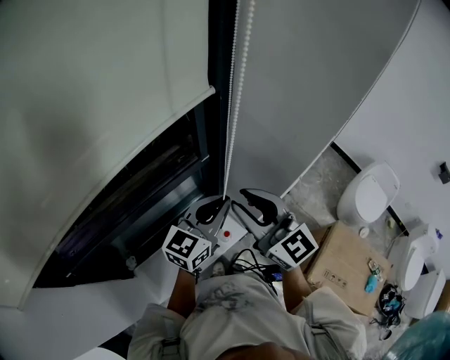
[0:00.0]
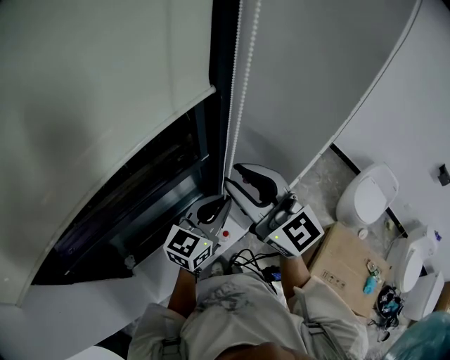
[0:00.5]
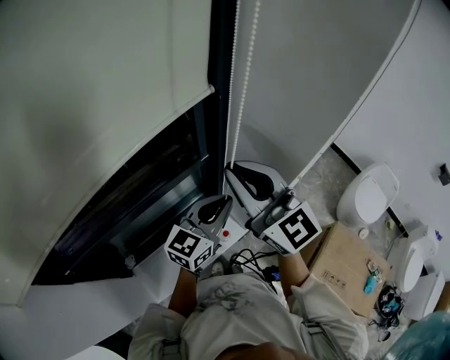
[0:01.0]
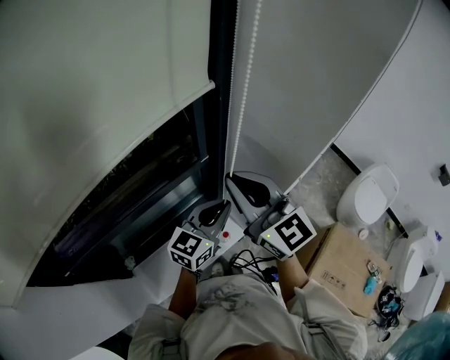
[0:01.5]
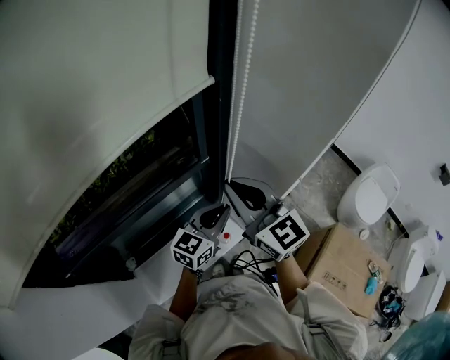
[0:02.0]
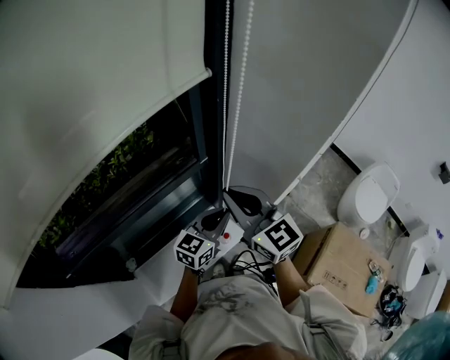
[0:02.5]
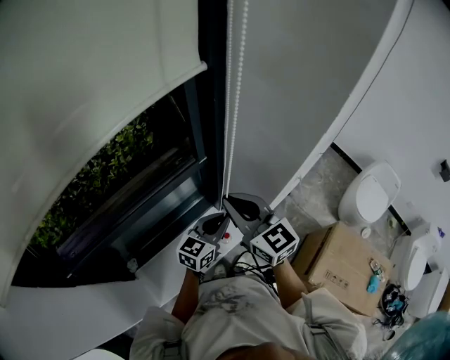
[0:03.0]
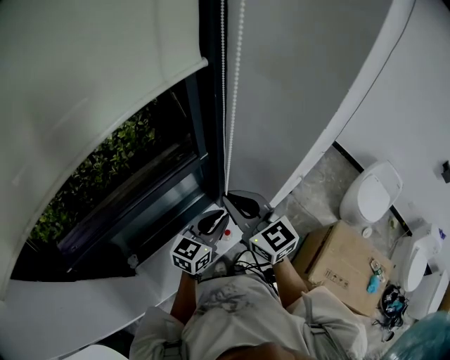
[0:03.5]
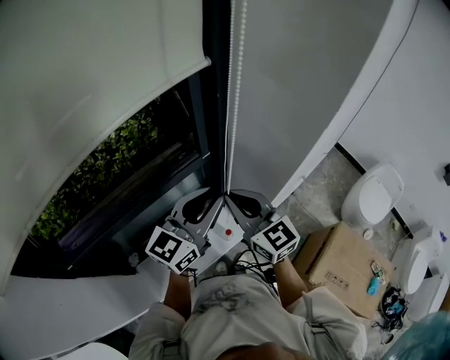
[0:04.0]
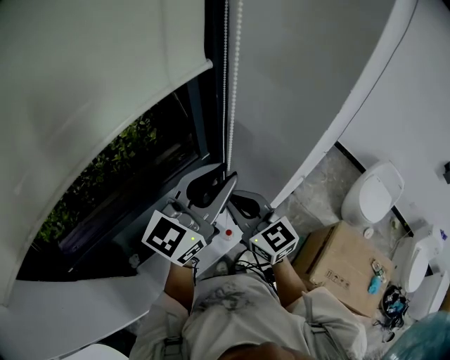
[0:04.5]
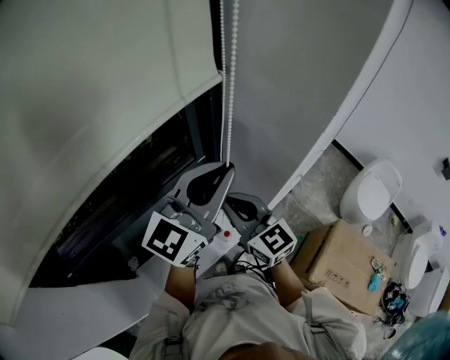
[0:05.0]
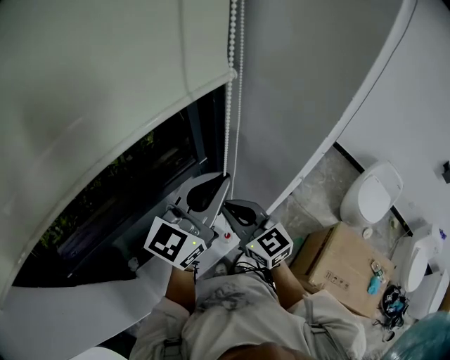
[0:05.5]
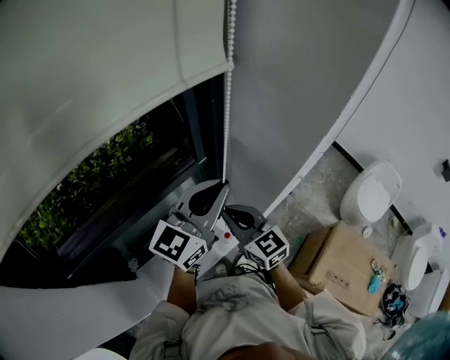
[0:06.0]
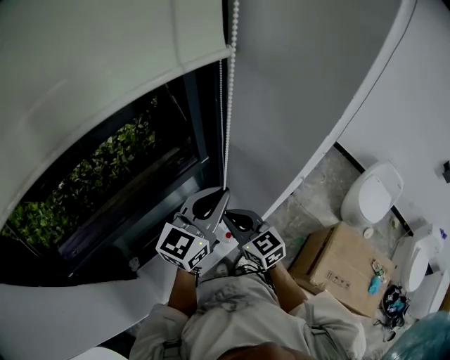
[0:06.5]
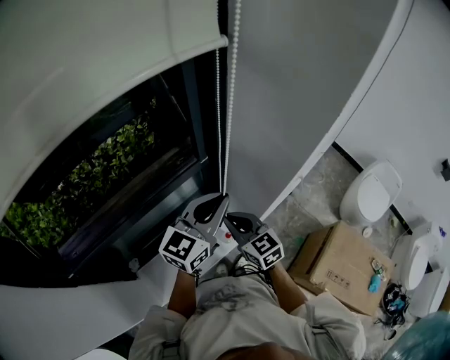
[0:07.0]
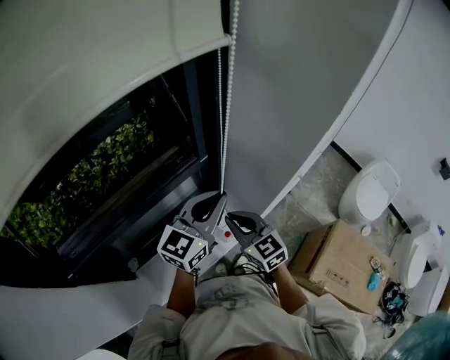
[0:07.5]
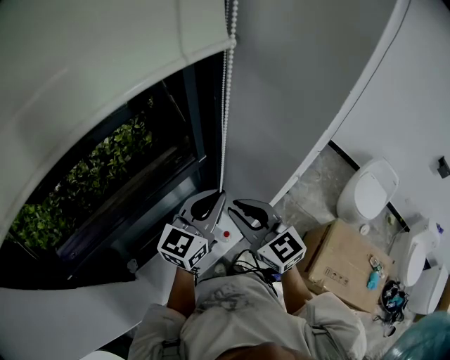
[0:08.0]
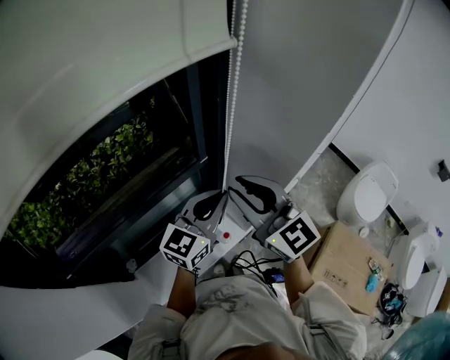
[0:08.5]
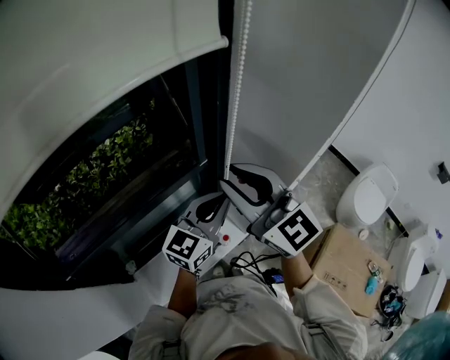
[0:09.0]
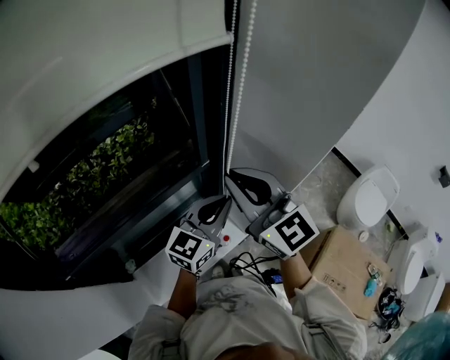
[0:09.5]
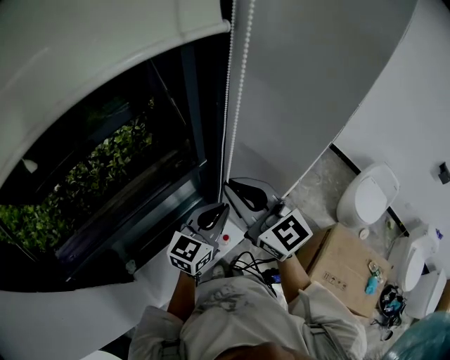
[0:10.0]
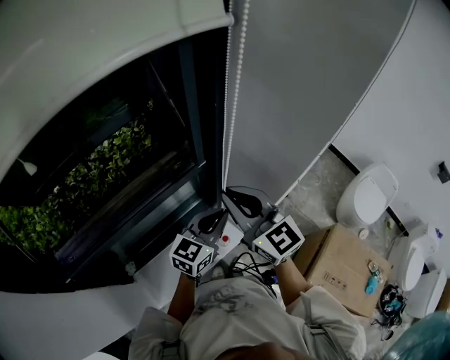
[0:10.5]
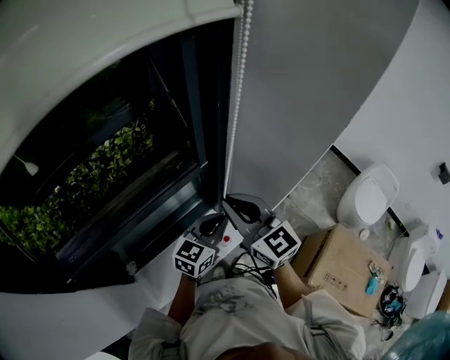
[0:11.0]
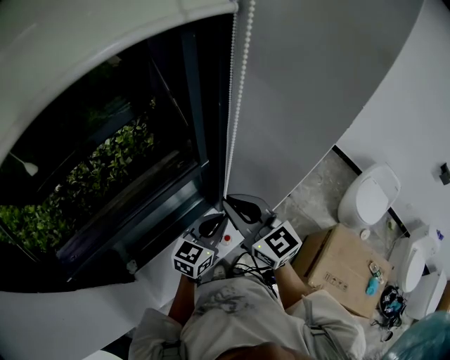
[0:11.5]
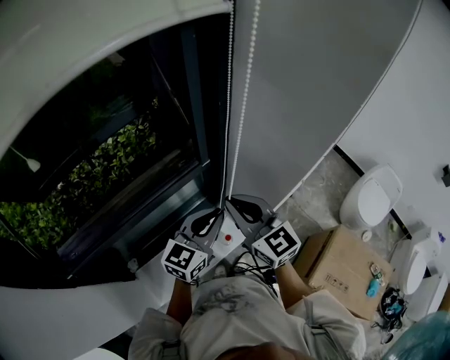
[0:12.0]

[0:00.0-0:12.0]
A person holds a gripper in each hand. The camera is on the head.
0:00.0 to 0:02.0: The right gripper moves about 10 cm upward and comes back, and closes up. Meanwhile the left gripper shifts roughly 5 cm downward.
0:02.0 to 0:04.0: The left gripper is displaced upward by approximately 10 cm, while the right gripper moves downward, about 5 cm.
0:04.0 to 0:06.0: The right gripper heads downward, covering roughly 5 cm.
0:06.0 to 0:08.0: The left gripper moves downward, approximately 5 cm, while the right gripper goes about 5 cm upward.
0:08.0 to 0:10.0: The right gripper goes some 5 cm upward; the left gripper goes approximately 5 cm downward.
0:10.0 to 0:12.0: The right gripper is displaced downward by approximately 5 cm.

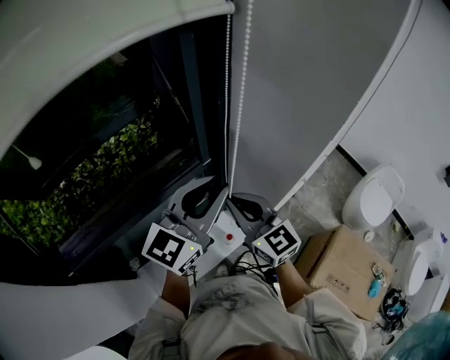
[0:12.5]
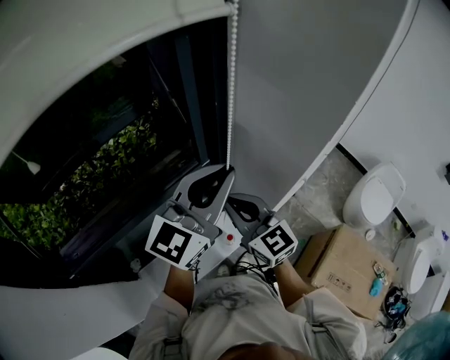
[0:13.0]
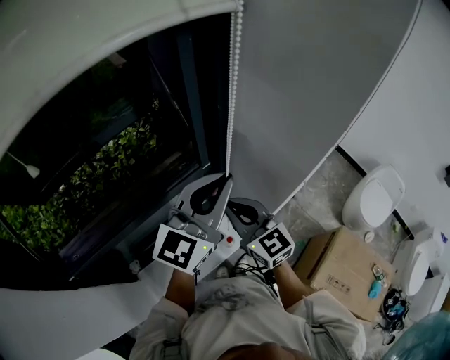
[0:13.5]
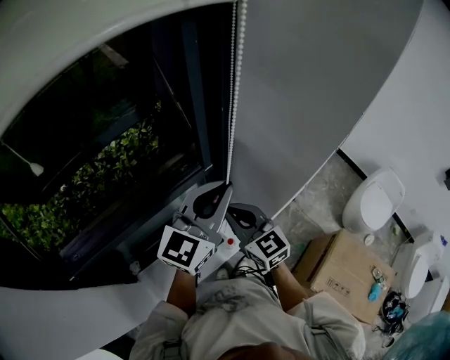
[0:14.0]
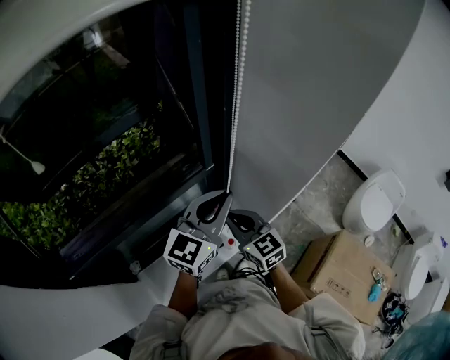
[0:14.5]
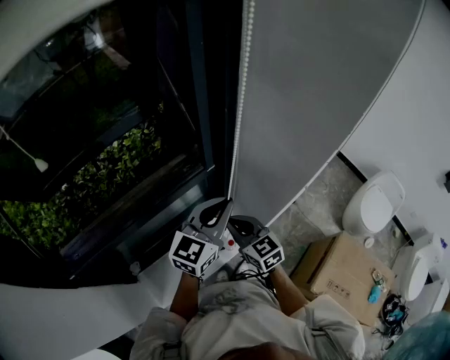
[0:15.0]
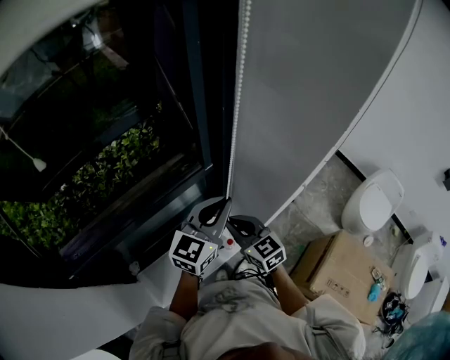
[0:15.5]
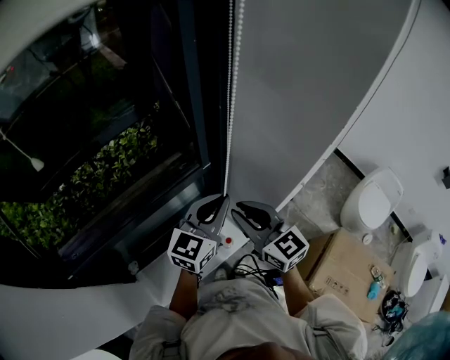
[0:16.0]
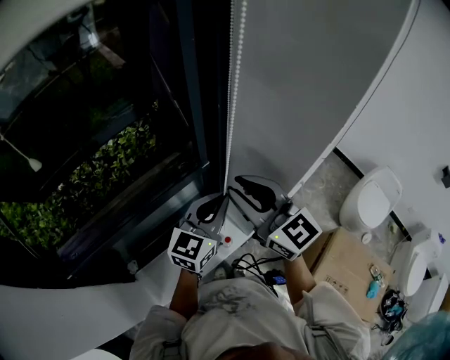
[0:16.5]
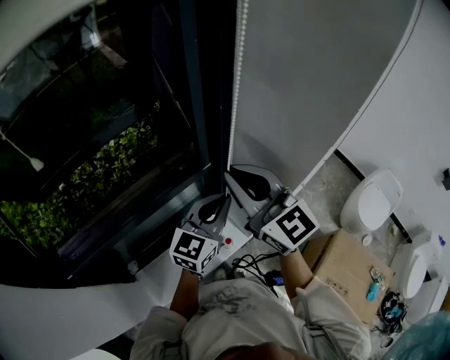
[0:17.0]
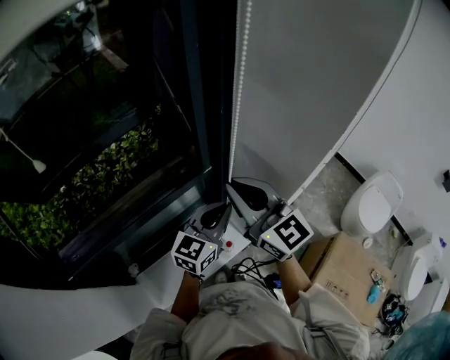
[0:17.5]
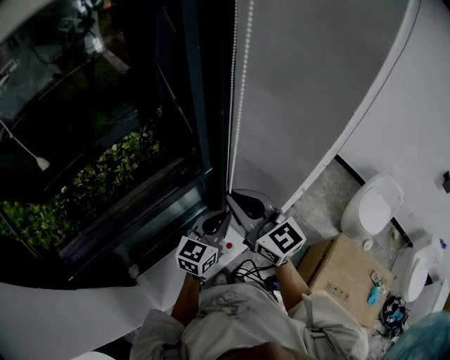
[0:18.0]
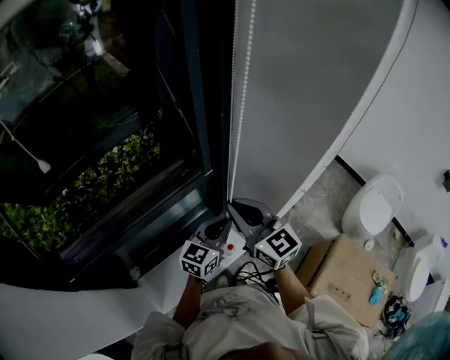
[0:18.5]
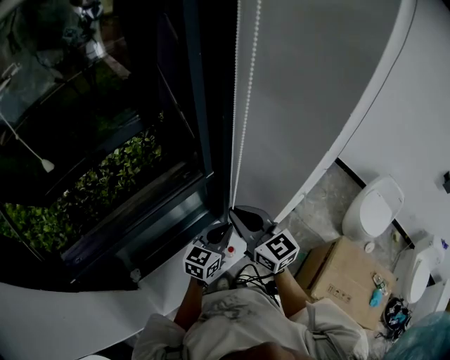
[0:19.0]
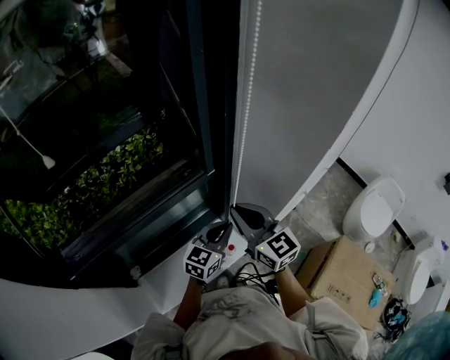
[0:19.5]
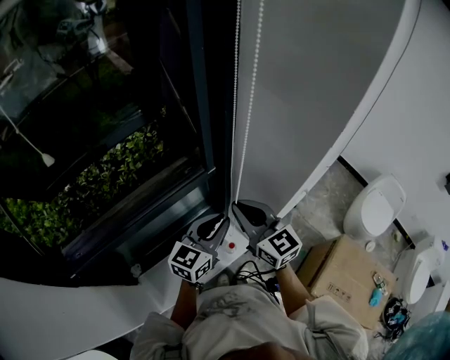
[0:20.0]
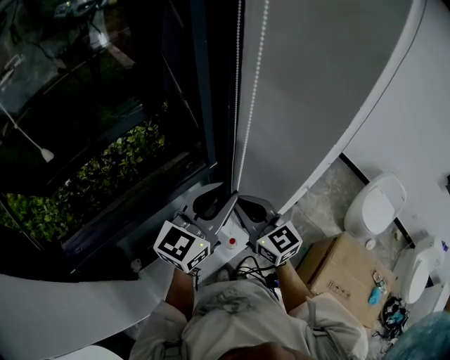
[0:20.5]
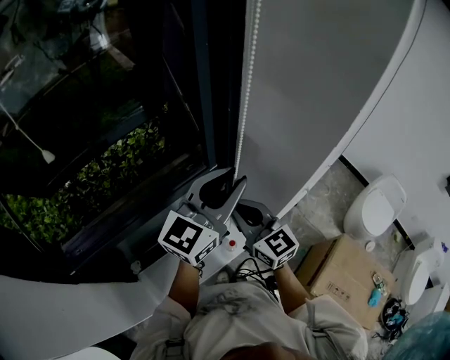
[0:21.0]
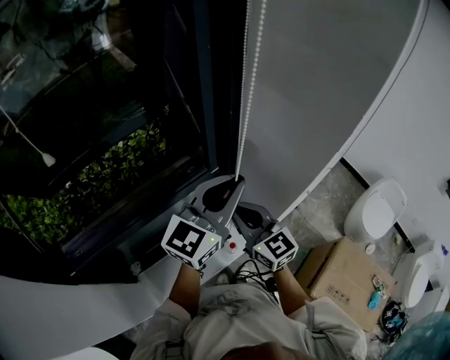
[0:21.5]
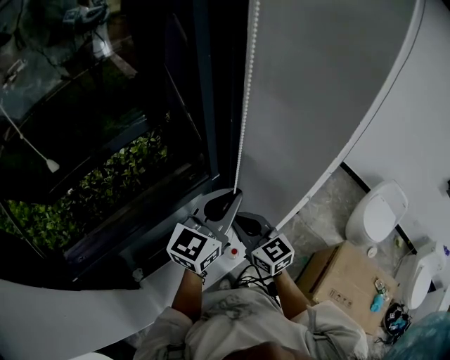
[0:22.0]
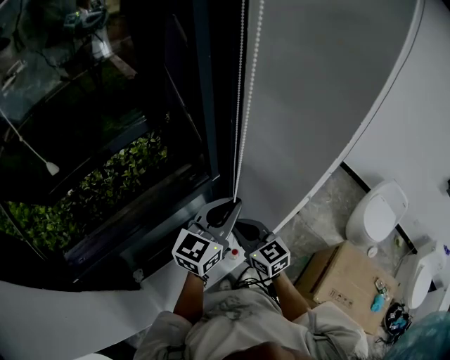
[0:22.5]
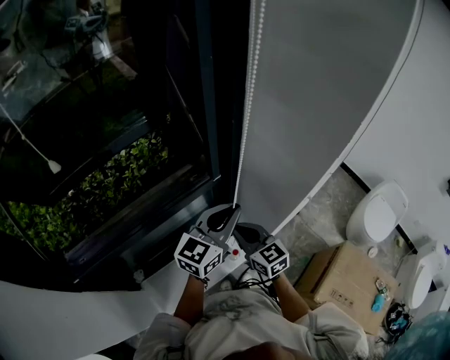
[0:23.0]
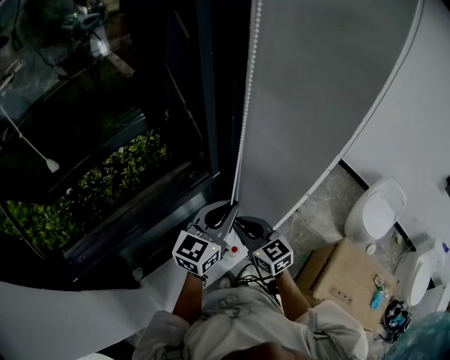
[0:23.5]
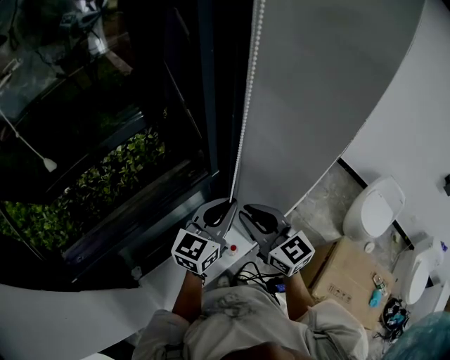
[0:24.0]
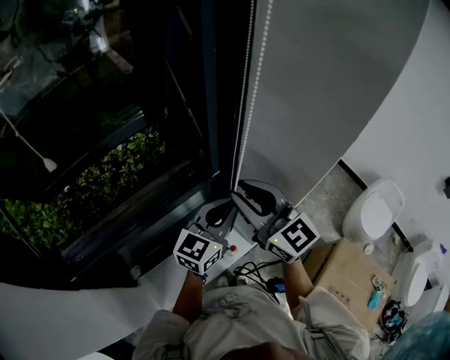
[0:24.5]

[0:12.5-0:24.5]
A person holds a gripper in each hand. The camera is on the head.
0:12.5 to 0:14.5: The right gripper shifts some 10 cm downward, while the left gripper is displaced downward by roughly 5 cm.
0:14.5 to 0:16.5: The right gripper heads upward, covering roughly 15 cm, and opens up.
0:16.5 to 0:18.5: The left gripper goes some 10 cm downward. The right gripper is displaced downward by roughly 5 cm, and closes up.
0:18.5 to 0:20.5: The left gripper is displaced upward by approximately 20 cm, and opens.
0:20.5 to 0:22.5: The left gripper shifts by about 5 cm, while the right gripper travels downward by about 10 cm.
0:22.5 to 0:24.5: The right gripper heads upward, covering about 20 cm, and opens its fingers.

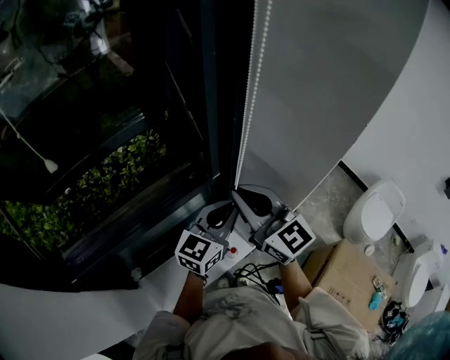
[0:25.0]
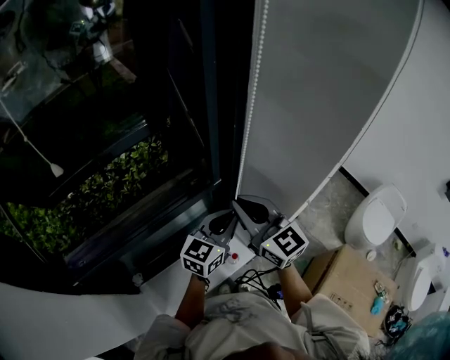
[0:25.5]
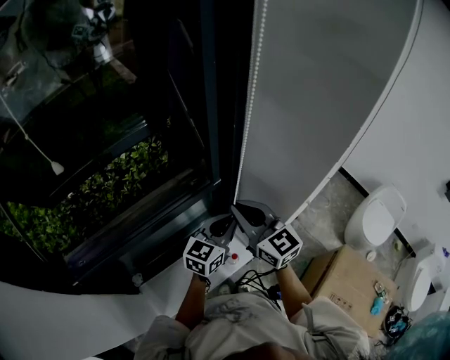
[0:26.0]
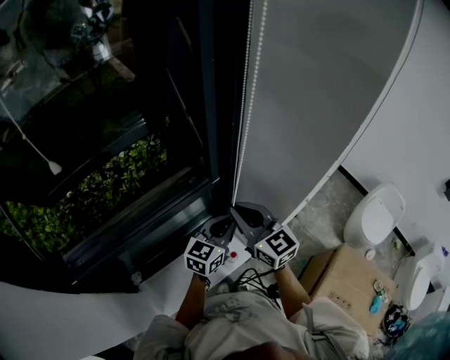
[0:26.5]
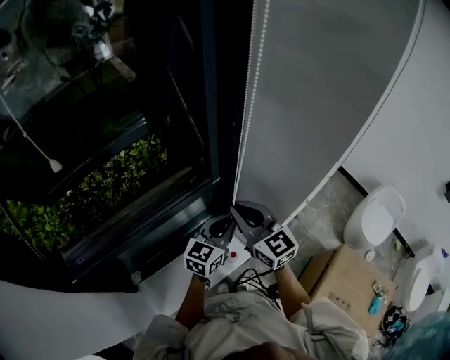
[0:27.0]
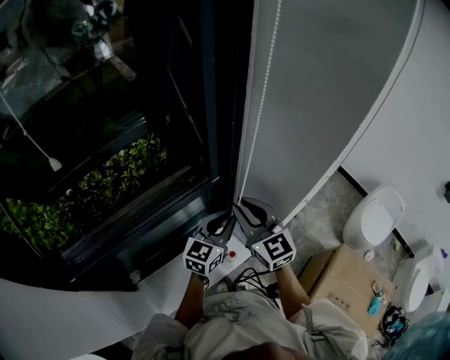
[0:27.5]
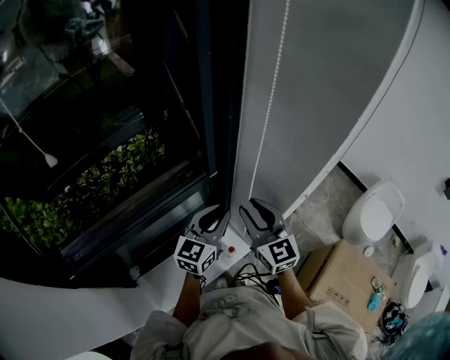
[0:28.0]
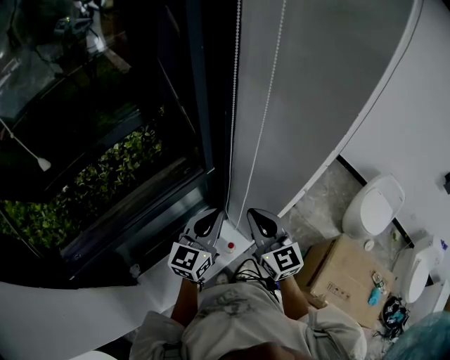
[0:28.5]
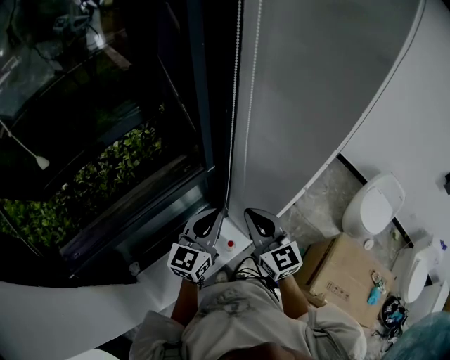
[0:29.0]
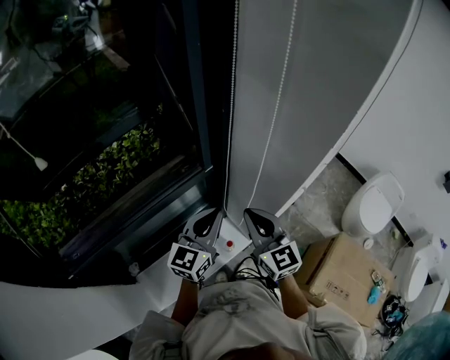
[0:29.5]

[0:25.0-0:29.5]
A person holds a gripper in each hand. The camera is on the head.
0:25.0 to 0:27.0: The two grippers go roughly 10 cm downward.
0:27.0 to 0:29.5: The right gripper shifts roughly 5 cm to the right, and opens and closes again. The left gripper moves some 5 cm.
